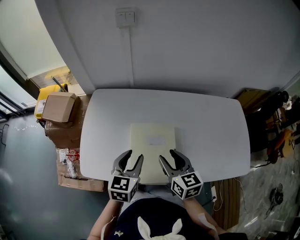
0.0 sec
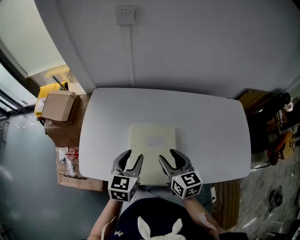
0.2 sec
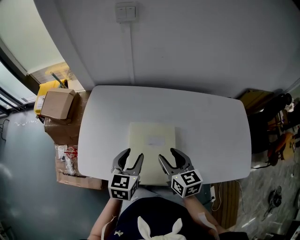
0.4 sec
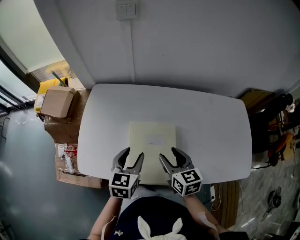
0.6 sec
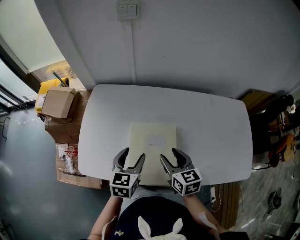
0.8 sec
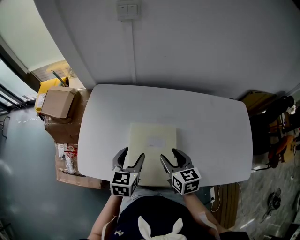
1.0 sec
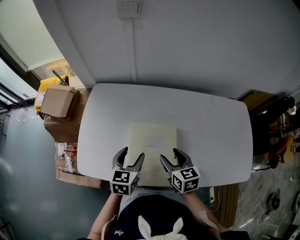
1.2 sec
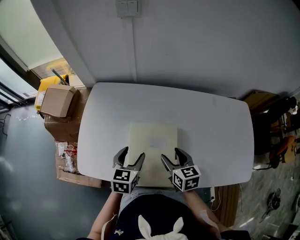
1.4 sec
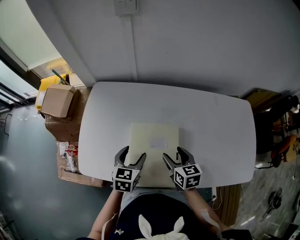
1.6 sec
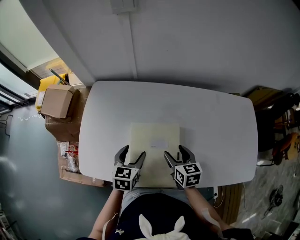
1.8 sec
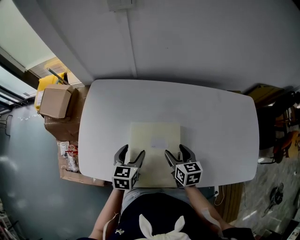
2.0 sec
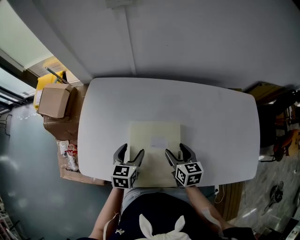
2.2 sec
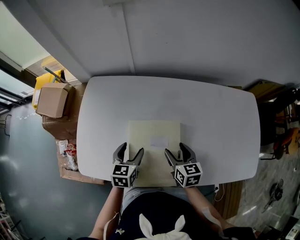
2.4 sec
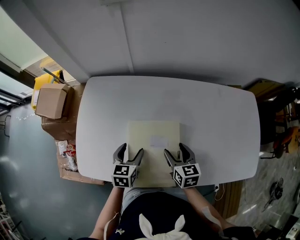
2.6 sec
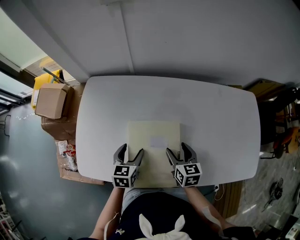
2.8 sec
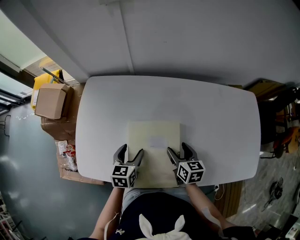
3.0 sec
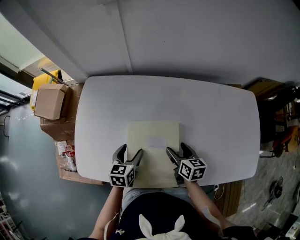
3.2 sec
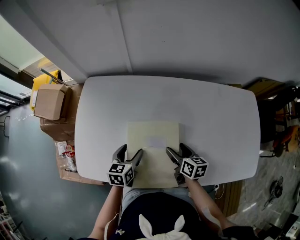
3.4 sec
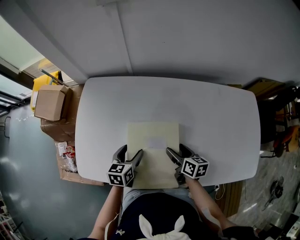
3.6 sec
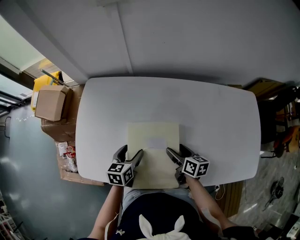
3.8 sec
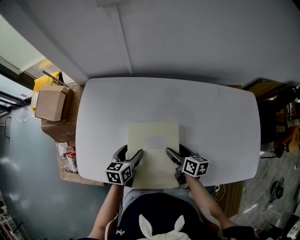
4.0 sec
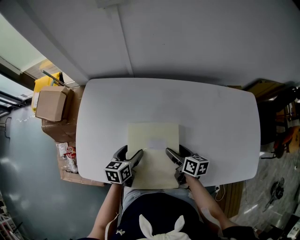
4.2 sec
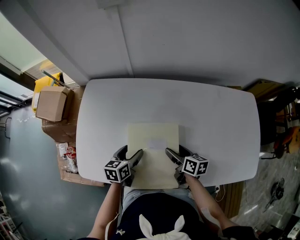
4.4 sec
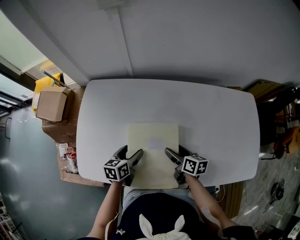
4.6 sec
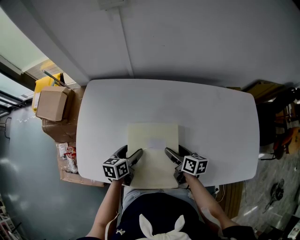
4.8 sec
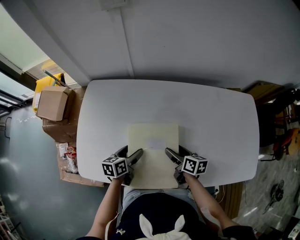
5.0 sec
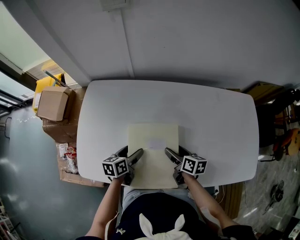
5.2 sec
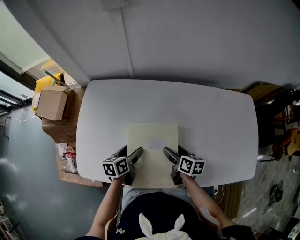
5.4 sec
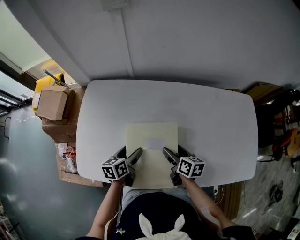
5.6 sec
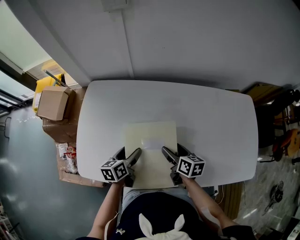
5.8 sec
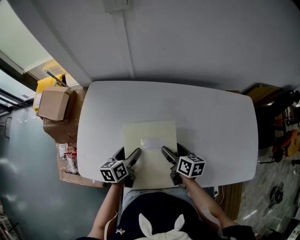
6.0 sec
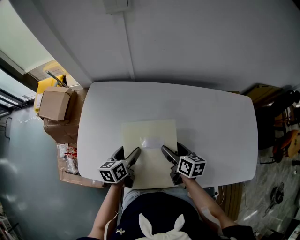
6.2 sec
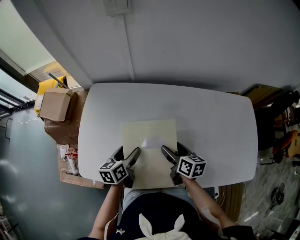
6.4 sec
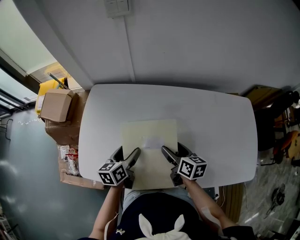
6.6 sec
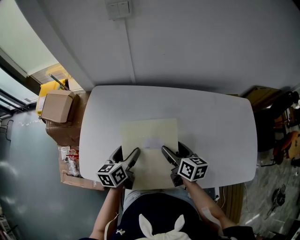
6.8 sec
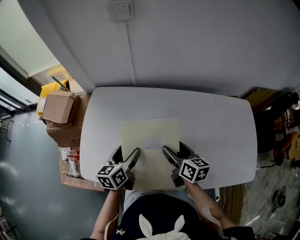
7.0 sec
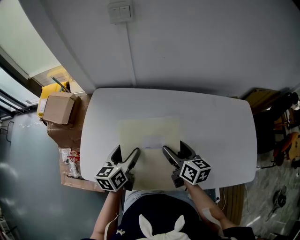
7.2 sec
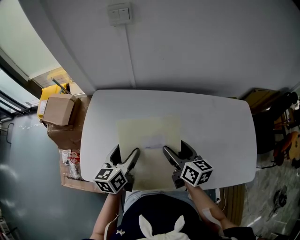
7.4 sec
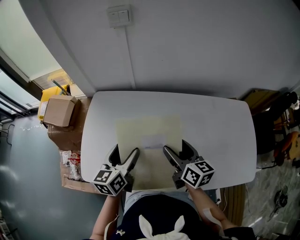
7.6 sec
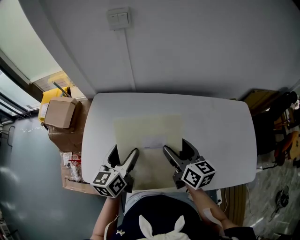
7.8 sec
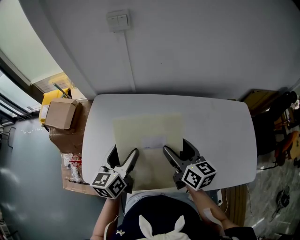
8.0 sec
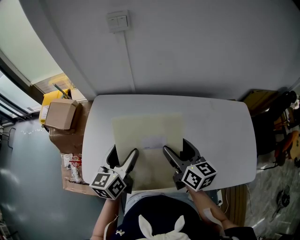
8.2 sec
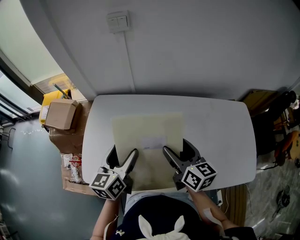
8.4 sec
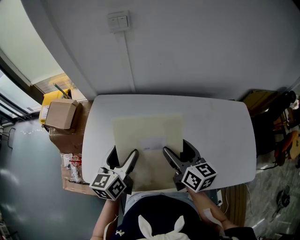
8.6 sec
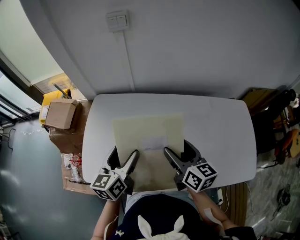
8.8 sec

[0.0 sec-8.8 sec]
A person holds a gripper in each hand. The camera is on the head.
0.0 sec to 1.4 sec: The grippers both shift downward by about 10 cm. The left gripper opens its fingers.
1.4 sec to 3.0 sec: The two grippers go about 5 cm downward.
3.0 sec to 4.4 sec: The right gripper changes its angle by about 20 degrees.
4.4 sec to 5.8 sec: The grippers move only a little.
5.8 sec to 7.4 sec: The two grippers go approximately 15 cm upward.
7.4 sec to 8.8 sec: The grippers both shift upward by about 5 cm.

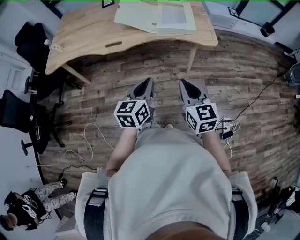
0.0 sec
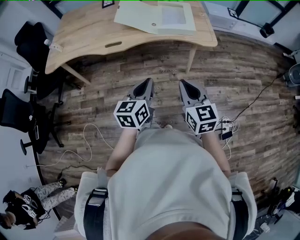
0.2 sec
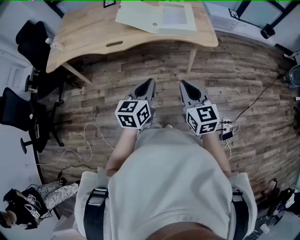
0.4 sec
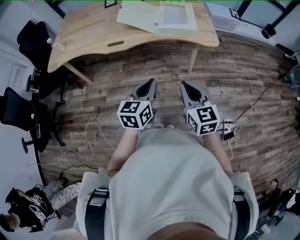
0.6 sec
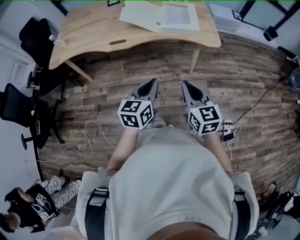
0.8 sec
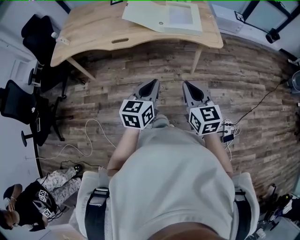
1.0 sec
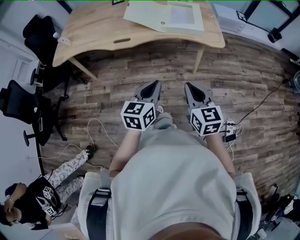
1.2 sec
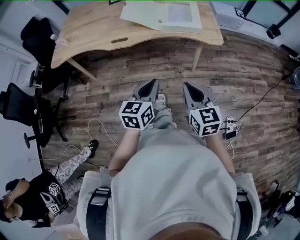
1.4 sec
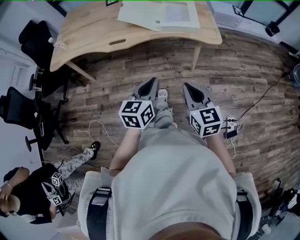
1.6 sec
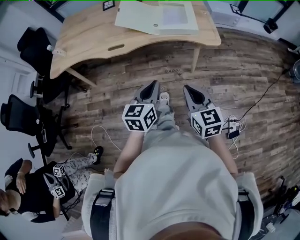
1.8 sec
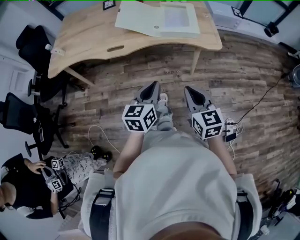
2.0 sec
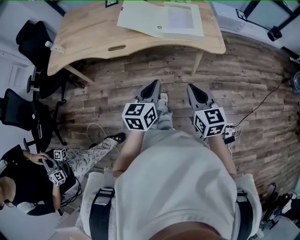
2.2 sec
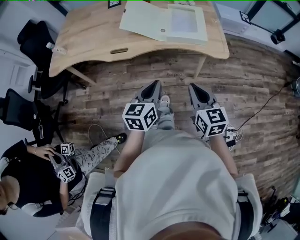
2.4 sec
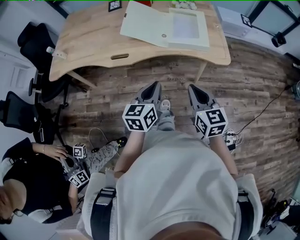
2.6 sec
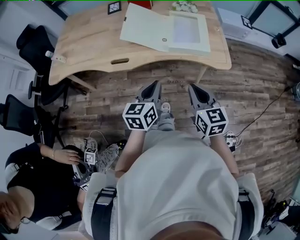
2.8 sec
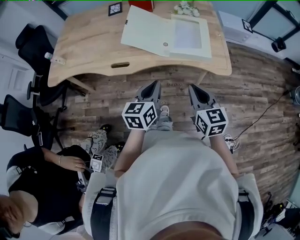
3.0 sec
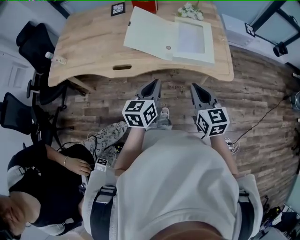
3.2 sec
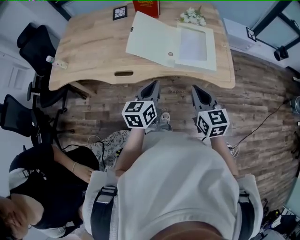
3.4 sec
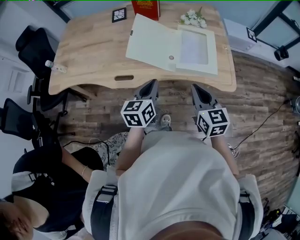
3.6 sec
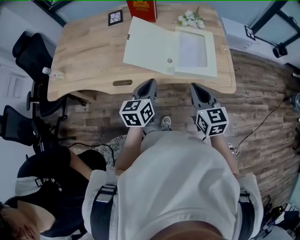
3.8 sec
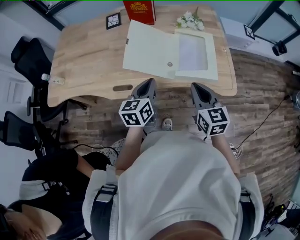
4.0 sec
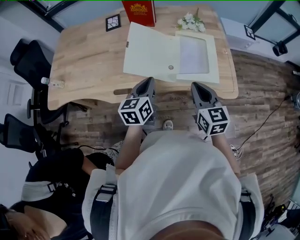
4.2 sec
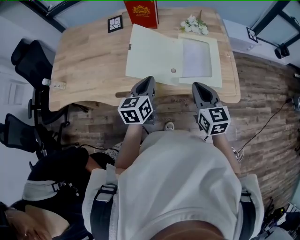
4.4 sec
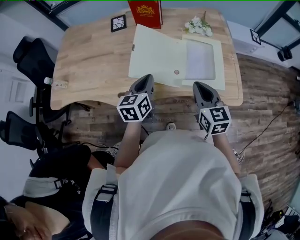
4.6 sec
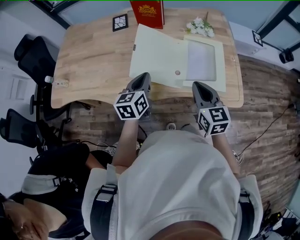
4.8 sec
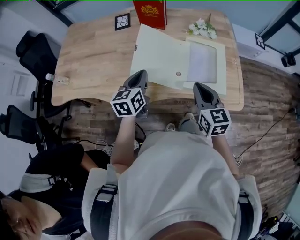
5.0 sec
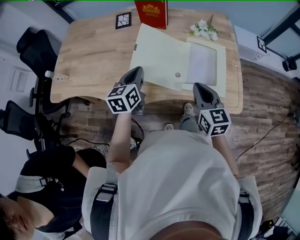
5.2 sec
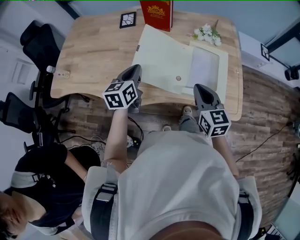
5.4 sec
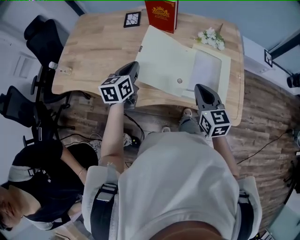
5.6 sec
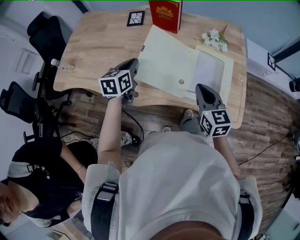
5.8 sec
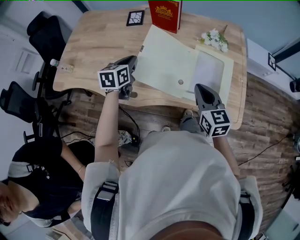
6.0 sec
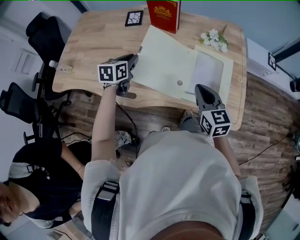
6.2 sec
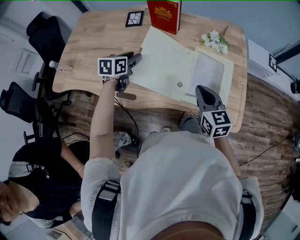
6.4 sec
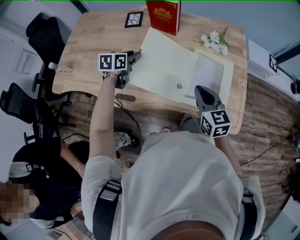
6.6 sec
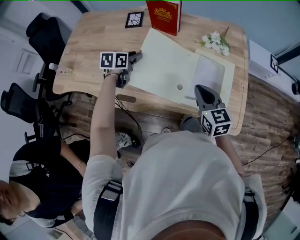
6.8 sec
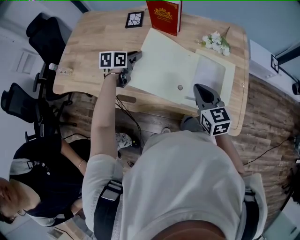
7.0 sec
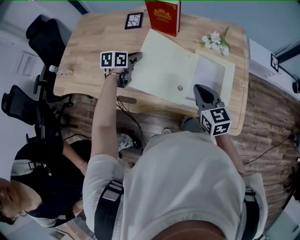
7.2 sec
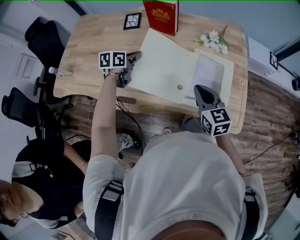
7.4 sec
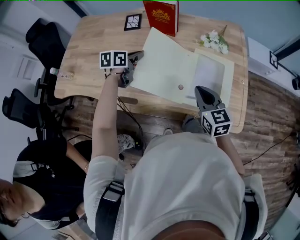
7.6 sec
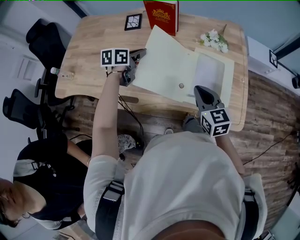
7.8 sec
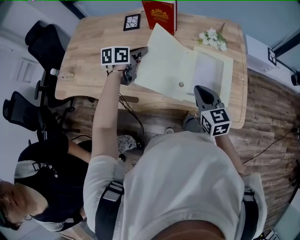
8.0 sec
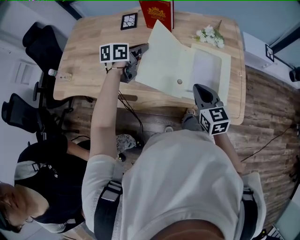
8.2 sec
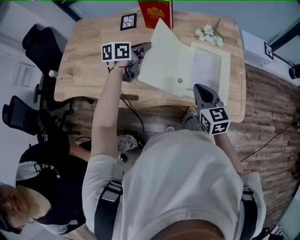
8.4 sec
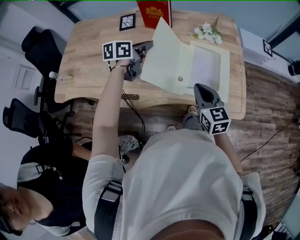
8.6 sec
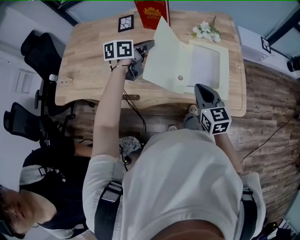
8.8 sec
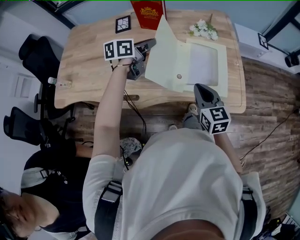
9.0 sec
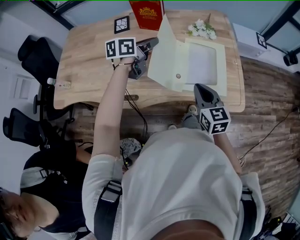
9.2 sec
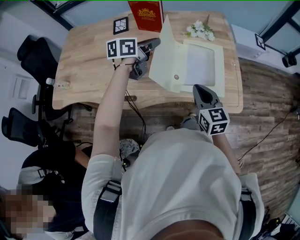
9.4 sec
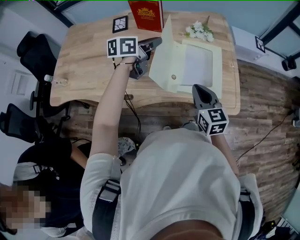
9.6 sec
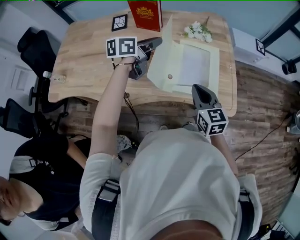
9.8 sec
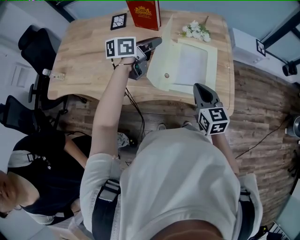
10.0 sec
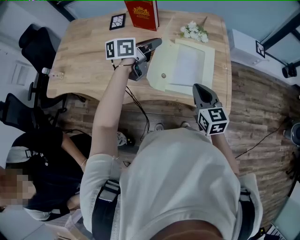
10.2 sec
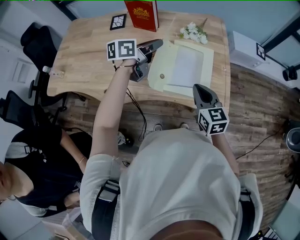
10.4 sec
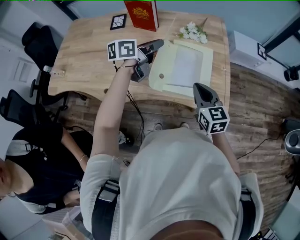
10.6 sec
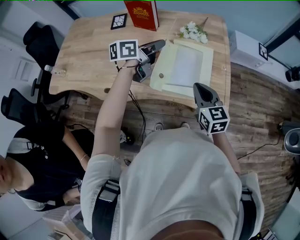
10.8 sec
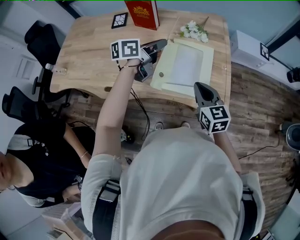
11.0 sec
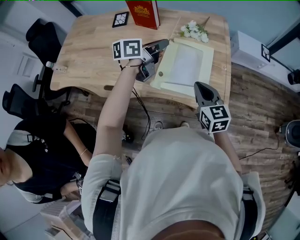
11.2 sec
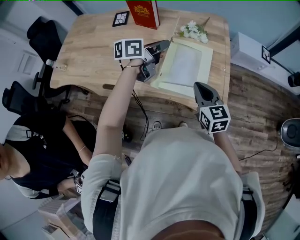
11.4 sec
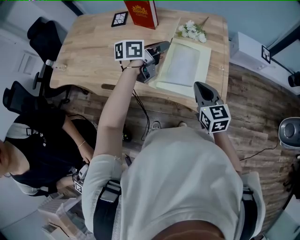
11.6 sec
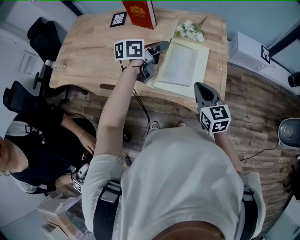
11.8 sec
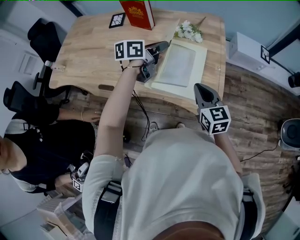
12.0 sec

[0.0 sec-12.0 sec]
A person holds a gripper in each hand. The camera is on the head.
0.0 sec to 1.6 sec: The grippers stay close to where they were, moving slightly.
1.6 sec to 3.0 sec: The two grippers go about 20 cm forward.
3.0 sec to 4.4 sec: Both grippers move forward, approximately 20 cm.
4.4 sec to 6.0 sec: The left gripper goes roughly 15 cm forward and to the left. Meanwhile the right gripper is displaced forward by approximately 10 cm.
6.0 sec to 7.6 sec: The left gripper heads forward, covering roughly 10 cm, turns by approximately 20 degrees, and opens, then closes once more.
7.6 sec to 9.0 sec: The right gripper travels backward by approximately 5 cm. Meanwhile the left gripper heads to the right and upward, covering some 10 cm.
9.0 sec to 10.4 sec: Both grippers move to the right, about 10 cm.
10.4 sec to 12.0 sec: The two grippers go some 10 cm to the right.

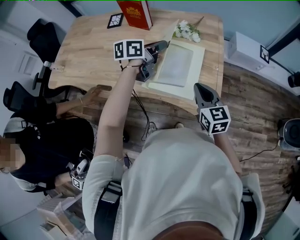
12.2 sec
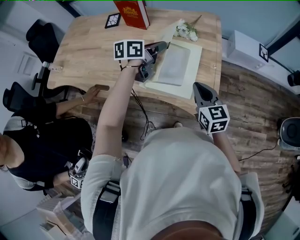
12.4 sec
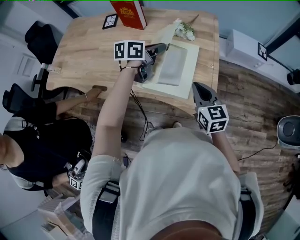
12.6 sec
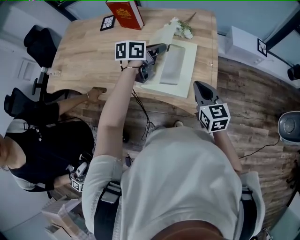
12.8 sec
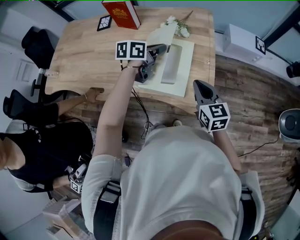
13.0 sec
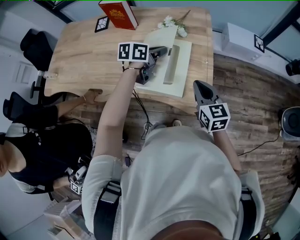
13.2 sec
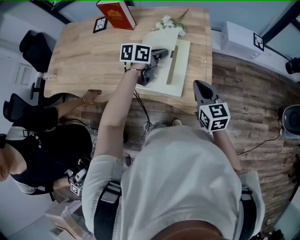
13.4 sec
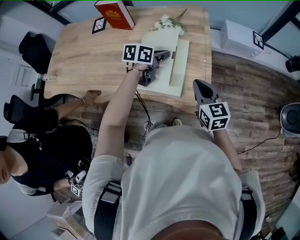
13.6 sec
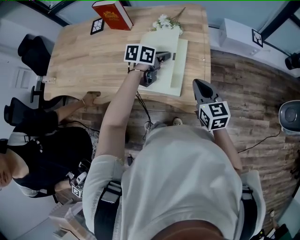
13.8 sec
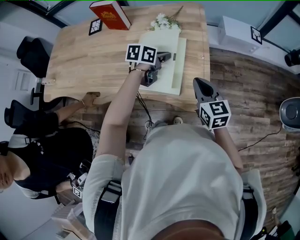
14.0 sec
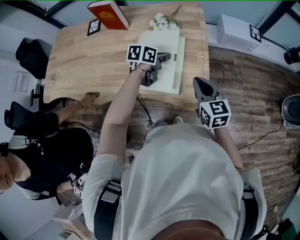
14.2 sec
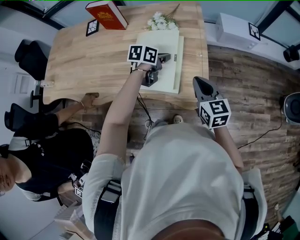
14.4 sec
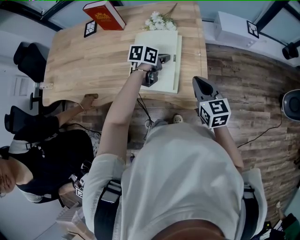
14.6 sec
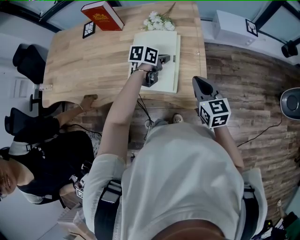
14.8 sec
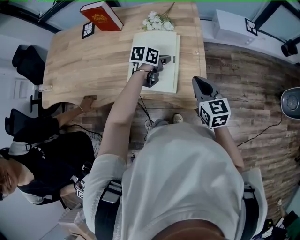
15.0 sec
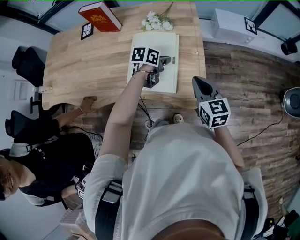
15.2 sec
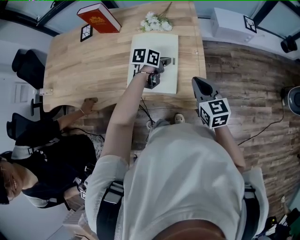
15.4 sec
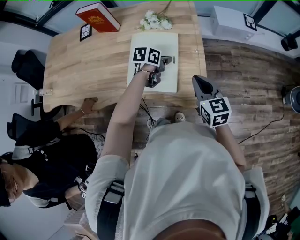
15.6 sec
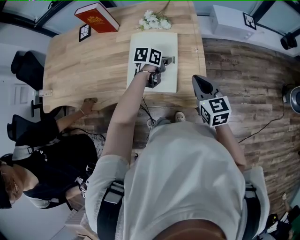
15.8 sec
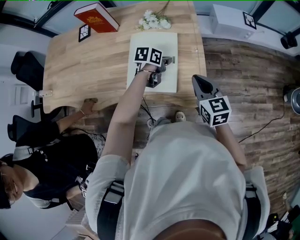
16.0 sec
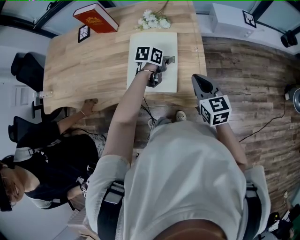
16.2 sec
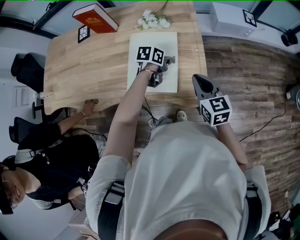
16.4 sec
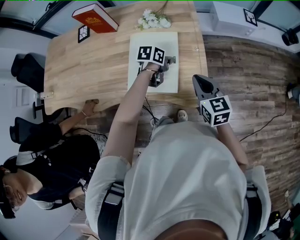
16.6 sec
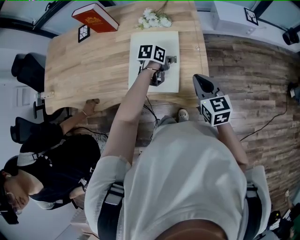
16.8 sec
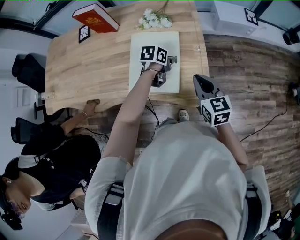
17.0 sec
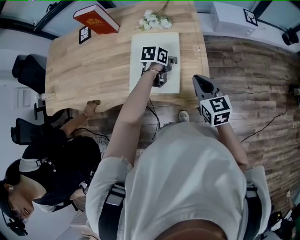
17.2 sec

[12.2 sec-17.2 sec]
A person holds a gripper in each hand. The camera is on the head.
12.2 sec to 13.8 sec: The right gripper shifts roughly 5 cm to the right. Meanwhile the left gripper heads to the right and downward, covering about 15 cm, and swivels some 20 degrees.
13.8 sec to 15.6 sec: The left gripper heads downward, covering approximately 10 cm.
15.6 sec to 17.2 sec: The grippers move only a little.
